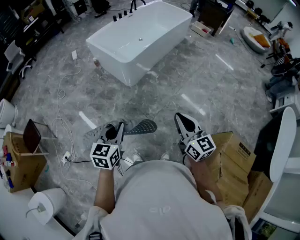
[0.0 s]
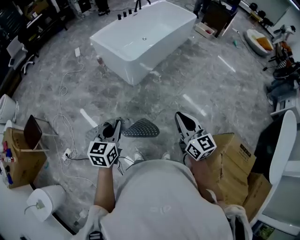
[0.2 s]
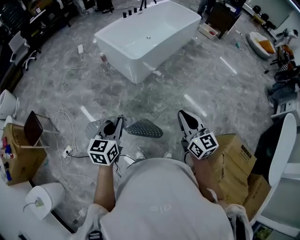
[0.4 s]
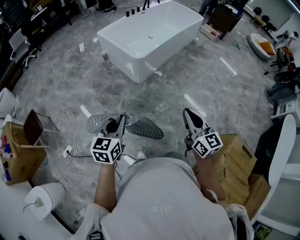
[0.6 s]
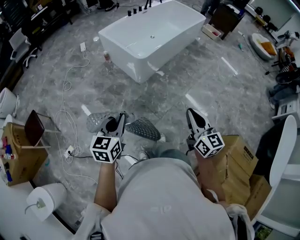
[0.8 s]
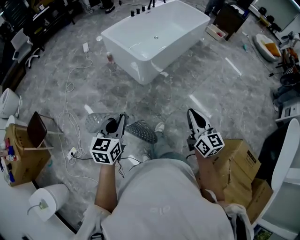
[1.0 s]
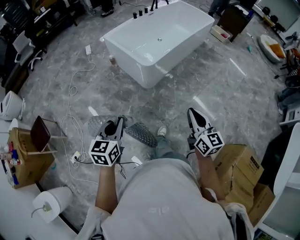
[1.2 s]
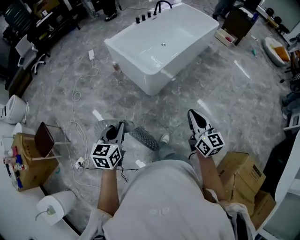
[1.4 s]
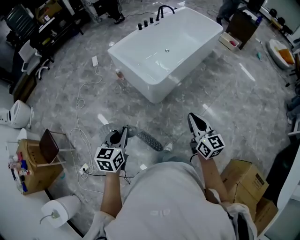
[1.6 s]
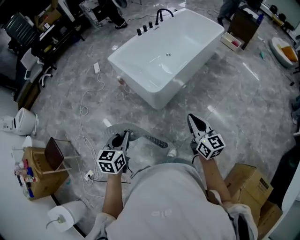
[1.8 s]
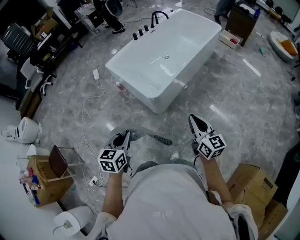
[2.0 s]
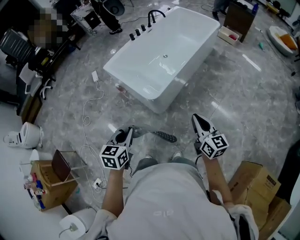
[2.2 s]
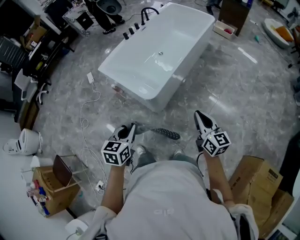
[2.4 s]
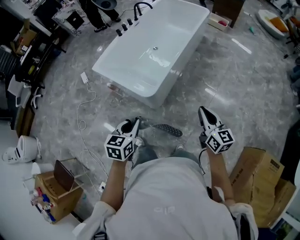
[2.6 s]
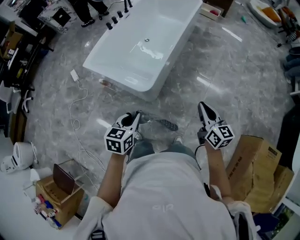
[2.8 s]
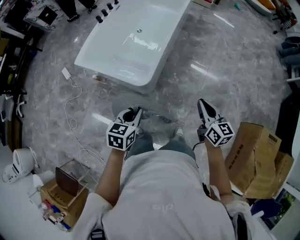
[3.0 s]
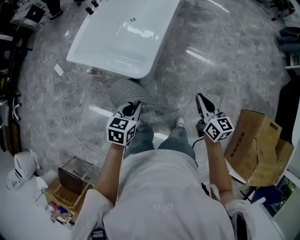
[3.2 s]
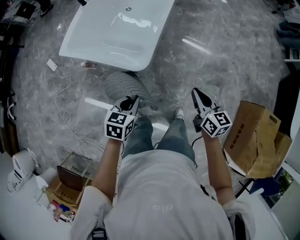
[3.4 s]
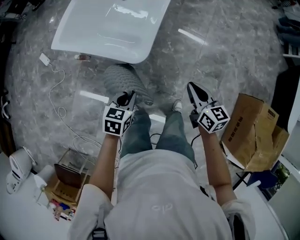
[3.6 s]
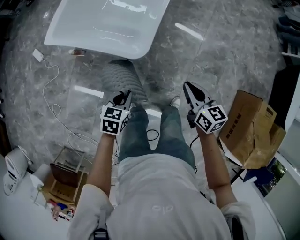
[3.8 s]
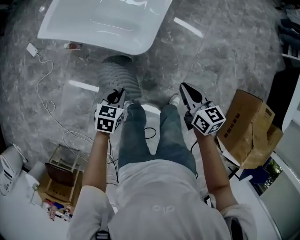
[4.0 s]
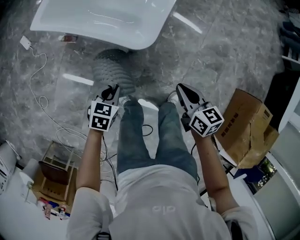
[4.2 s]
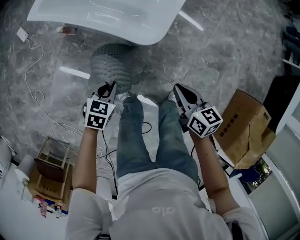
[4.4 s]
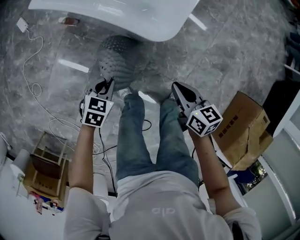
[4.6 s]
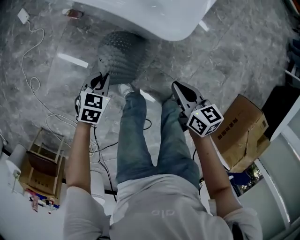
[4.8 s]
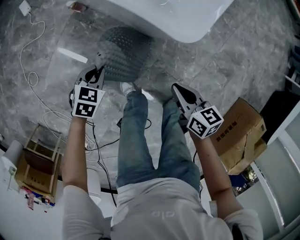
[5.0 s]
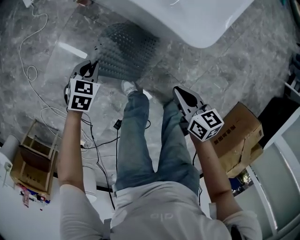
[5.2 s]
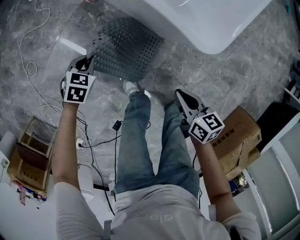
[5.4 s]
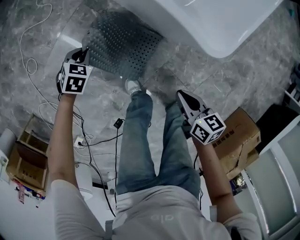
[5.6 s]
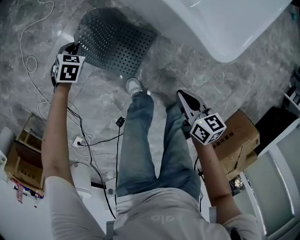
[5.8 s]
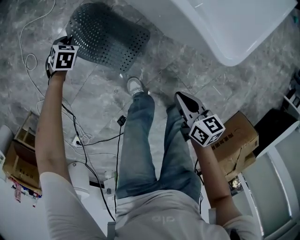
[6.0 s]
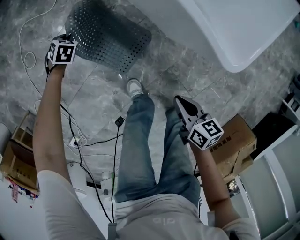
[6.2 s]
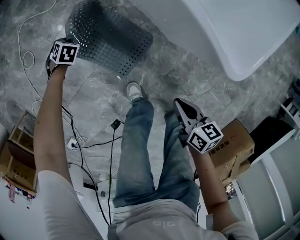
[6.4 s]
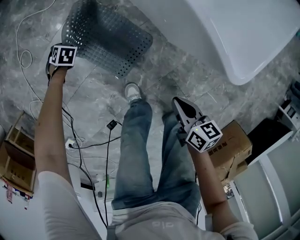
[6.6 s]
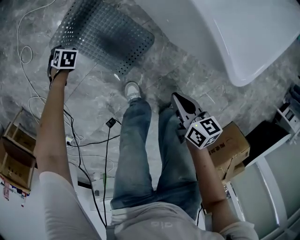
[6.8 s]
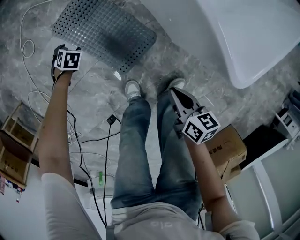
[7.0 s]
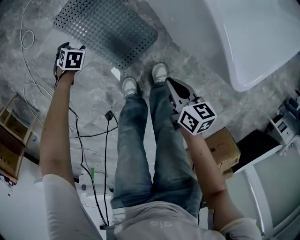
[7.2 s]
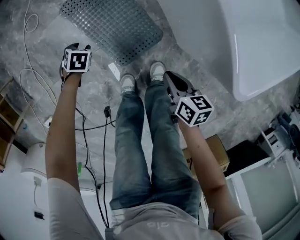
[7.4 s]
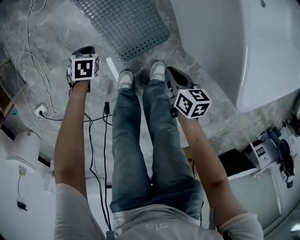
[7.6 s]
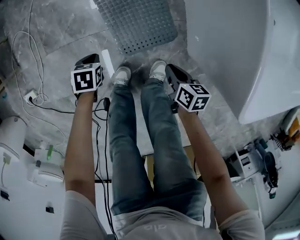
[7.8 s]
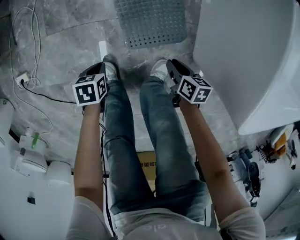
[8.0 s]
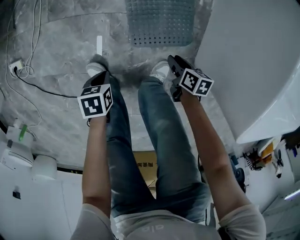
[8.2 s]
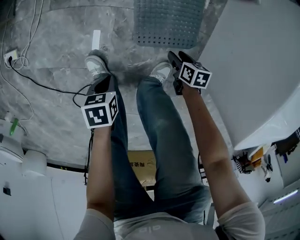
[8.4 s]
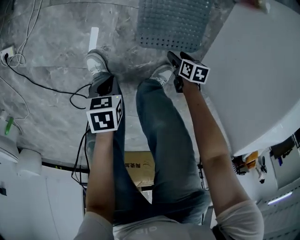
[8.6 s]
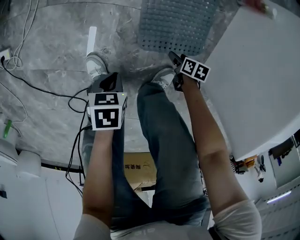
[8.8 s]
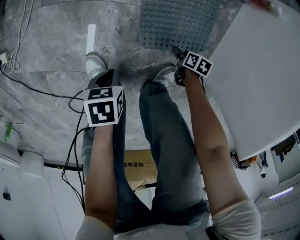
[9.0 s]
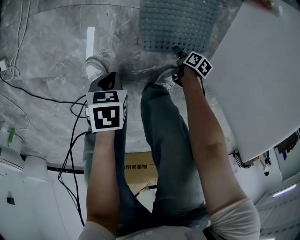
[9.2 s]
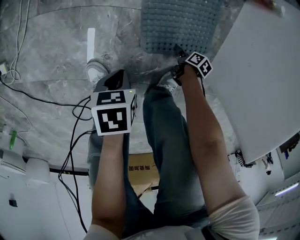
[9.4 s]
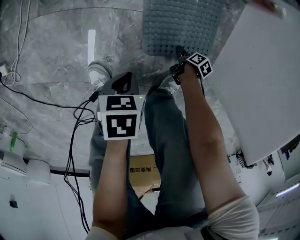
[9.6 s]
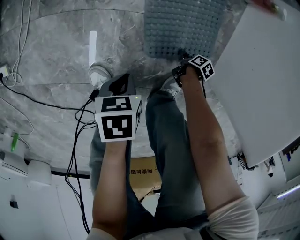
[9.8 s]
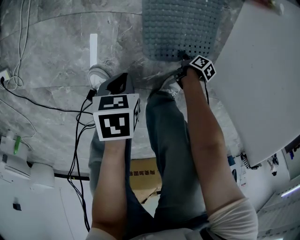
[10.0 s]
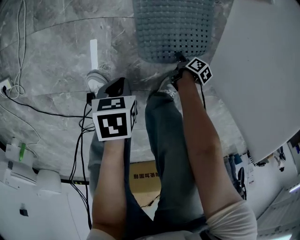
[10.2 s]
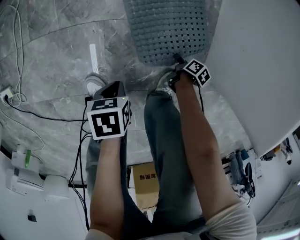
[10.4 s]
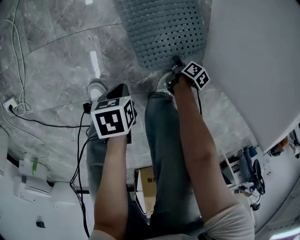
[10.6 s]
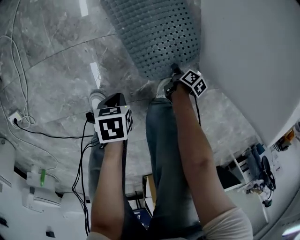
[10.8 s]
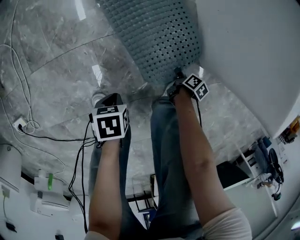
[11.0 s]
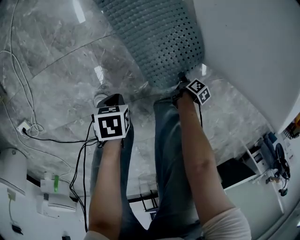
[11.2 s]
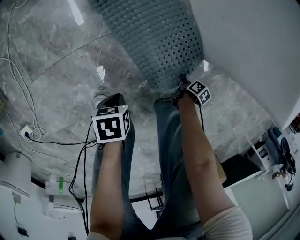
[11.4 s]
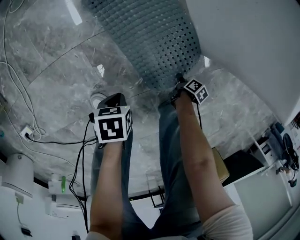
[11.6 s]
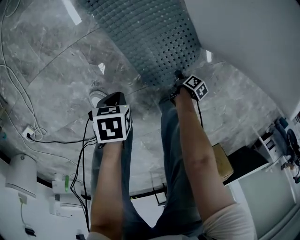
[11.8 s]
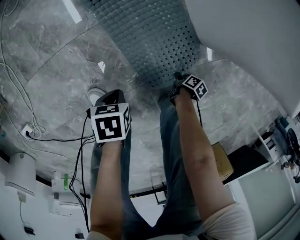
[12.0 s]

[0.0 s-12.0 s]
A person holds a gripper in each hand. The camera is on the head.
0.0 to 1.6 s: The left gripper moves forward and to the left, approximately 30 cm, while the right gripper goes roughly 30 cm forward.
1.6 to 3.0 s: The right gripper moves some 25 cm, and rotates approximately 30 degrees. Meanwhile the left gripper ends up some 35 cm from where it was, and rotates some 40 degrees.
3.0 to 4.4 s: Both grippers travel together downward and to the left, roughly 40 cm. The right gripper swivels about 30 degrees.
4.4 to 6.0 s: The left gripper moves roughly 50 cm, and rotates about 40 degrees; the right gripper ends up roughly 30 cm from where it was, and turns by approximately 20 degrees.
6.0 to 7.6 s: The left gripper ends up roughly 25 cm from where it was, rotates around the line of its fingers by roughly 40 degrees, counterclockwise from behind, and opens, then closes again; the right gripper shifts roughly 15 cm downward, and changes its angle by some 20 degrees.
7.6 to 9.0 s: The right gripper heads downward, covering some 35 cm, swivels some 30 degrees, and opens. The left gripper shifts by some 25 cm, and rotates around the line of its fingers by about 40 degrees, counterclockwise from behind.
9.0 to 10.4 s: The right gripper changes its angle by approximately 40 degrees, and closes up.
10.4 to 12.0 s: The left gripper shifts by approximately 10 cm, and swivels about 20 degrees, while the right gripper moves about 25 cm, and changes its angle by approximately 30 degrees.

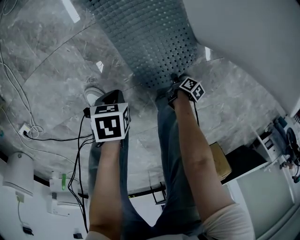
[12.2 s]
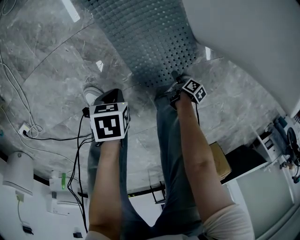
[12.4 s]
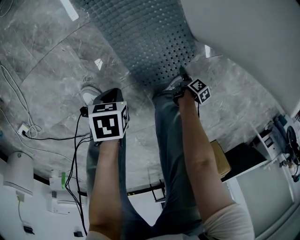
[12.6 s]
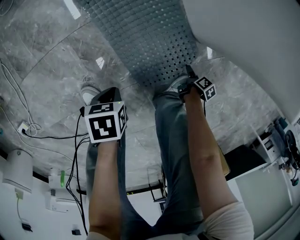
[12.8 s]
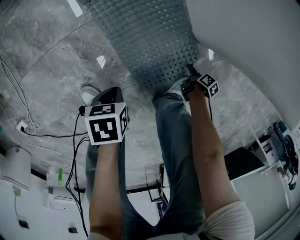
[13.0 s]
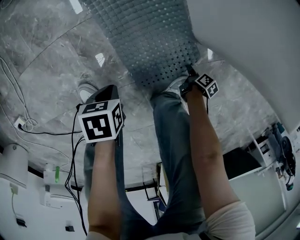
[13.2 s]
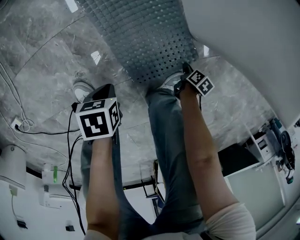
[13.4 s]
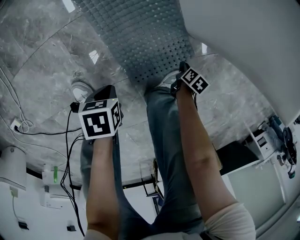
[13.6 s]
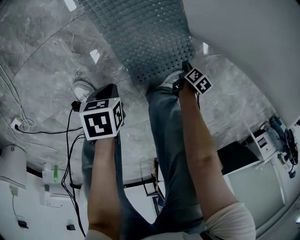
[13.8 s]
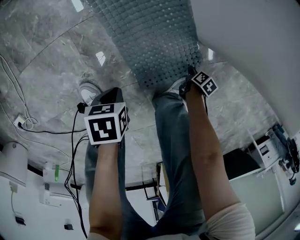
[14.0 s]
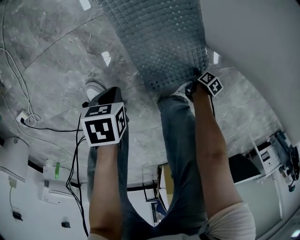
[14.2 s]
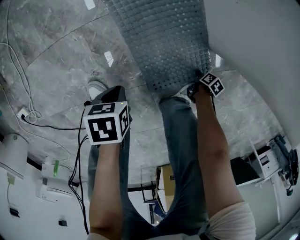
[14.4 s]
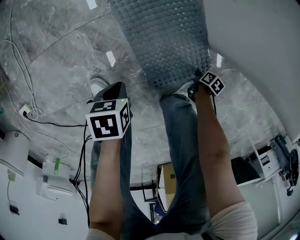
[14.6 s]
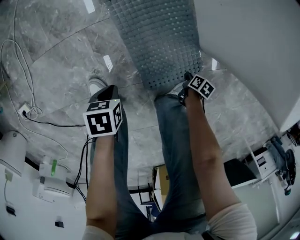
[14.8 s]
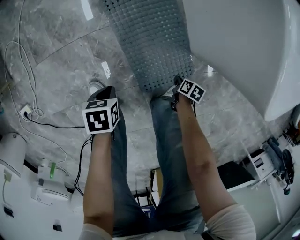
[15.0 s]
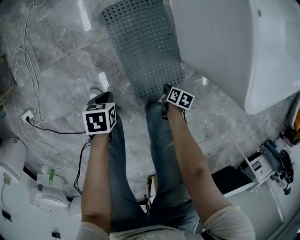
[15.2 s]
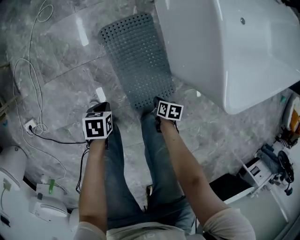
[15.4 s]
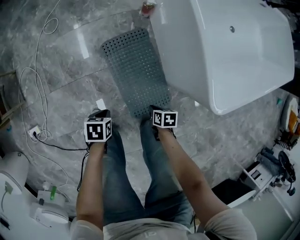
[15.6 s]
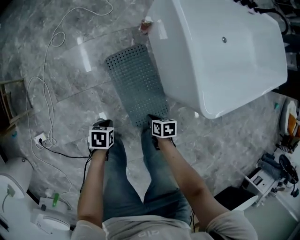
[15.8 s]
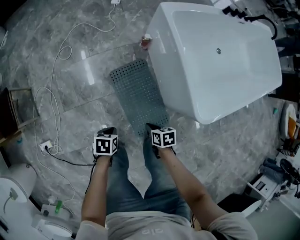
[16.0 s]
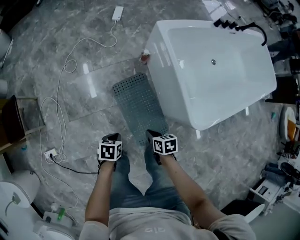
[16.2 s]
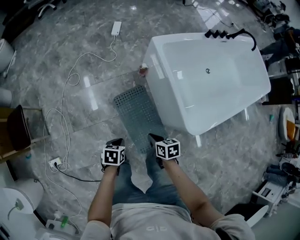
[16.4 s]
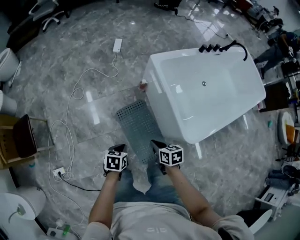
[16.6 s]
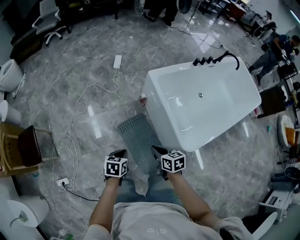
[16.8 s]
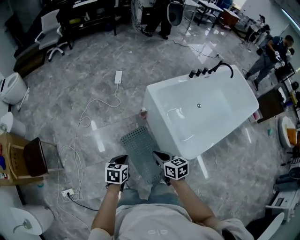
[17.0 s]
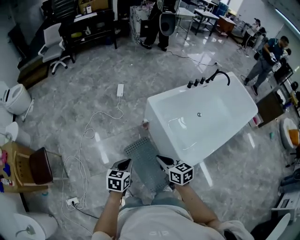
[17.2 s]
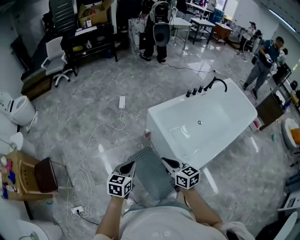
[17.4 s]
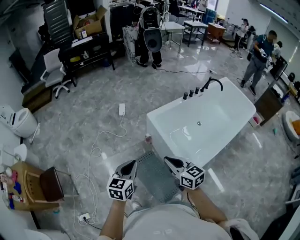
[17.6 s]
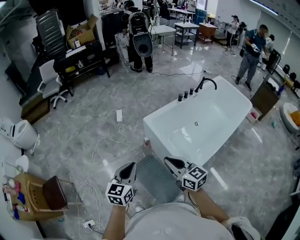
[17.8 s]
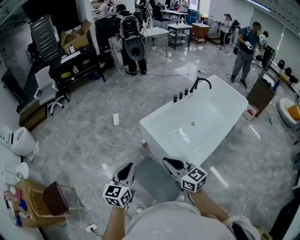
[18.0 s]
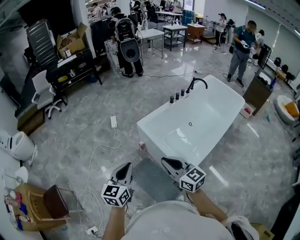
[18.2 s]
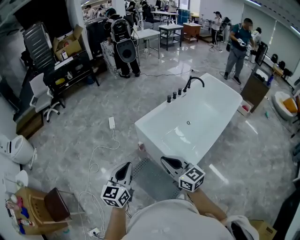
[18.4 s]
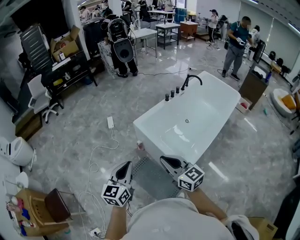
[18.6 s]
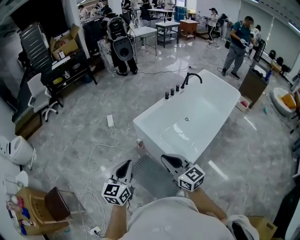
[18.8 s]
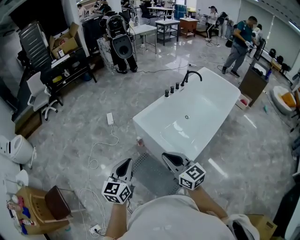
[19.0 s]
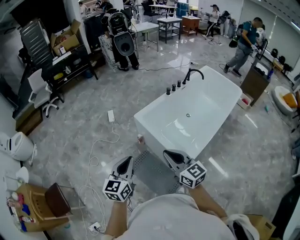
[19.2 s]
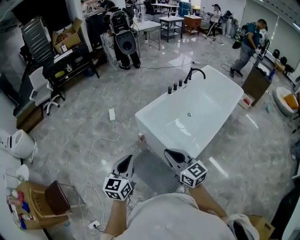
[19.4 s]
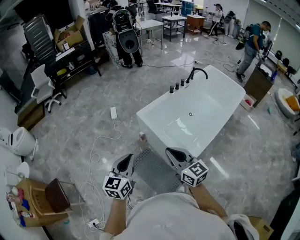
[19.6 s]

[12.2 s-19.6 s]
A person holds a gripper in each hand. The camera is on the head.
12.2 to 13.6 s: The right gripper moves approximately 10 cm, turns by some 30 degrees, and opens, then closes again.
13.6 to 15.2 s: The right gripper ends up roughly 20 cm from where it was, and changes its angle by some 20 degrees. The left gripper shifts about 15 cm upward.
15.2 to 16.6 s: The two grippers go roughly 50 cm upward. The left gripper changes its angle by roughly 20 degrees. Meanwhile the right gripper turns by some 40 degrees.
16.6 to 18.2 s: Both grippers move upward, some 50 cm. The left gripper tilts its fingers about 50 degrees upward. Meanwhile the right gripper tips its fingers upward by roughly 40 degrees.
18.2 to 19.6 s: The grippers stay close to where they were, moving slightly.

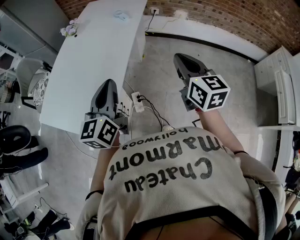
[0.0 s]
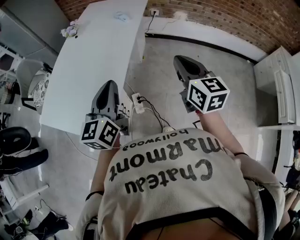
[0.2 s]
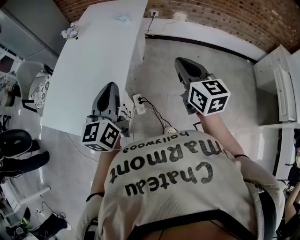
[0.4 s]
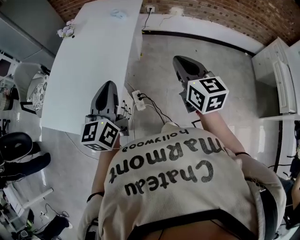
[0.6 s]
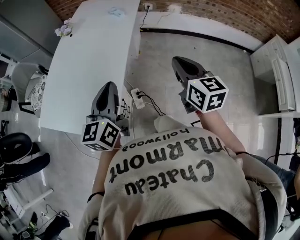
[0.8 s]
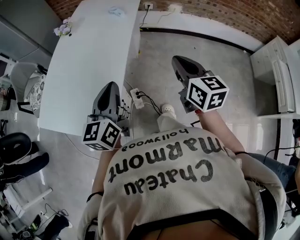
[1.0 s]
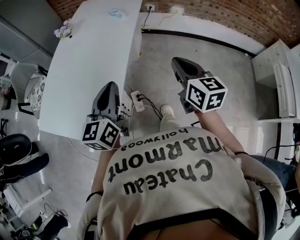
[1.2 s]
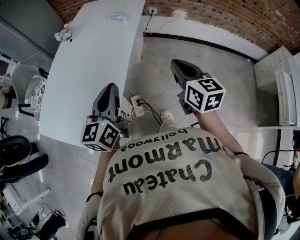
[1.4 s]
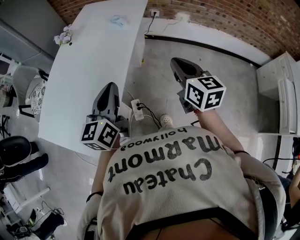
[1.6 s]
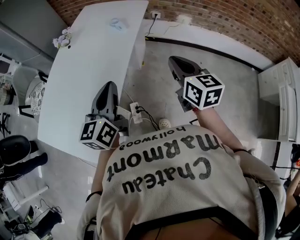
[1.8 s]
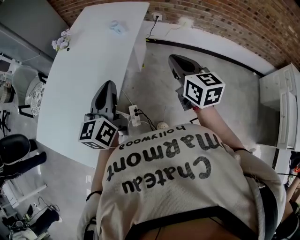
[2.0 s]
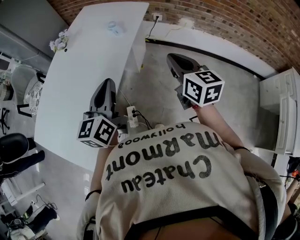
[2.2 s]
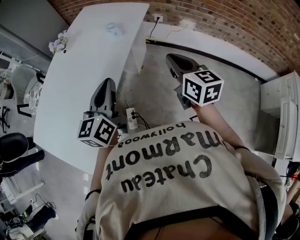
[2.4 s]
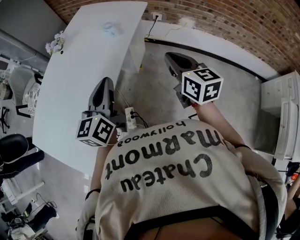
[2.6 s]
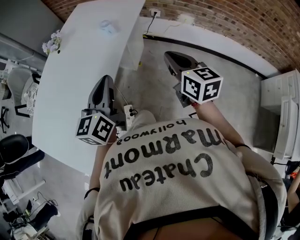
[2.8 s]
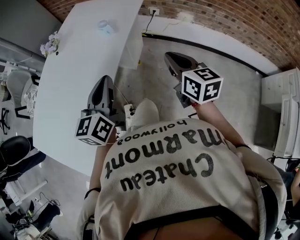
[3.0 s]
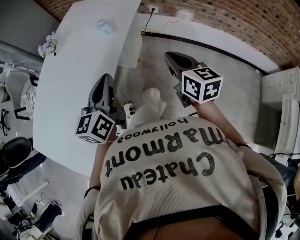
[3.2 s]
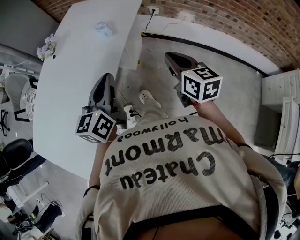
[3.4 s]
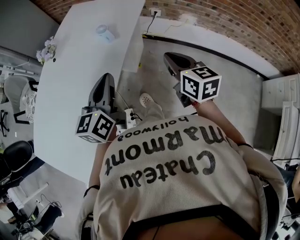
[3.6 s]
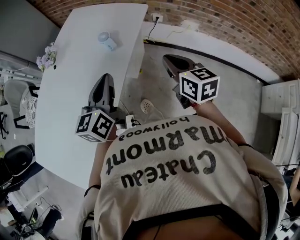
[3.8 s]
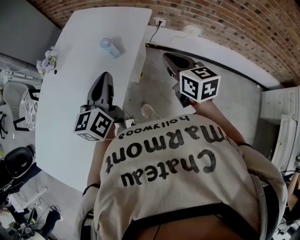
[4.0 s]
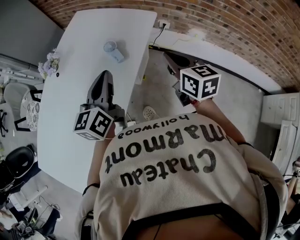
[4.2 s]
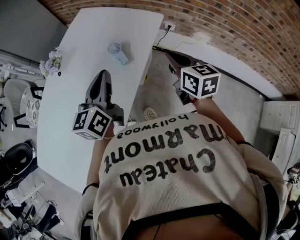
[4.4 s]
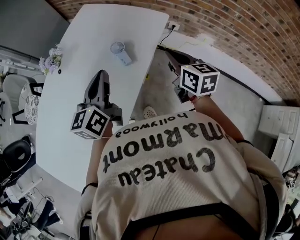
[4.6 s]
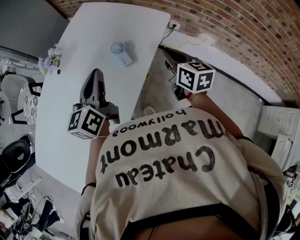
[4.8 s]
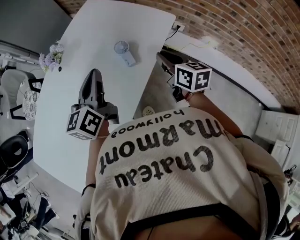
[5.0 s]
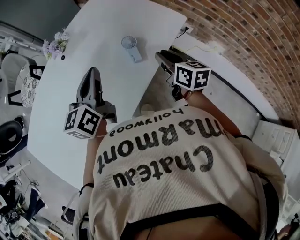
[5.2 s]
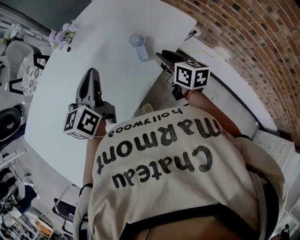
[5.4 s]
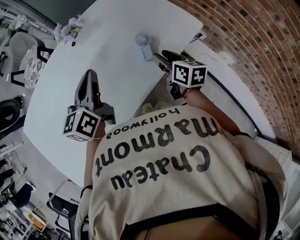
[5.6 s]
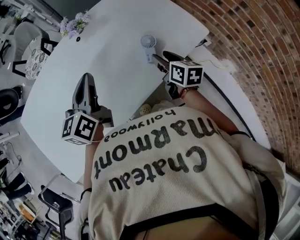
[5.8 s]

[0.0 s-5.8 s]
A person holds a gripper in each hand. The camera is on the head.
0.0 to 1.4 s: The two grippers go about 5 cm forward.
1.4 to 2.8 s: Both grippers move forward and to the right, some 25 cm.
2.8 to 4.4 s: The two grippers go approximately 25 cm forward.
4.4 to 5.8 s: The right gripper shifts by roughly 20 cm, changes its angle by about 20 degrees, and opens up. Meanwhile the left gripper ends up about 15 cm from where it was, and rotates about 30 degrees.
